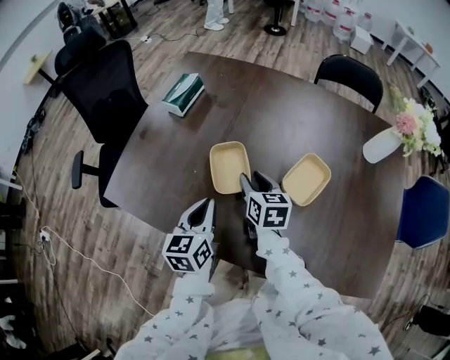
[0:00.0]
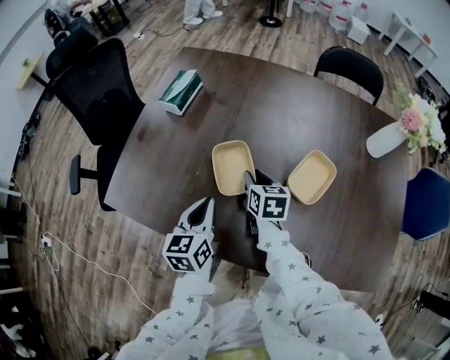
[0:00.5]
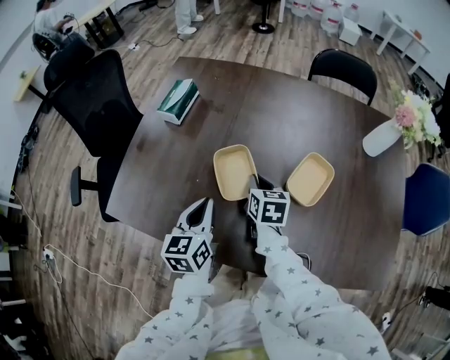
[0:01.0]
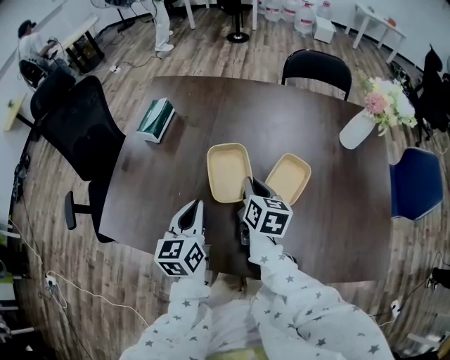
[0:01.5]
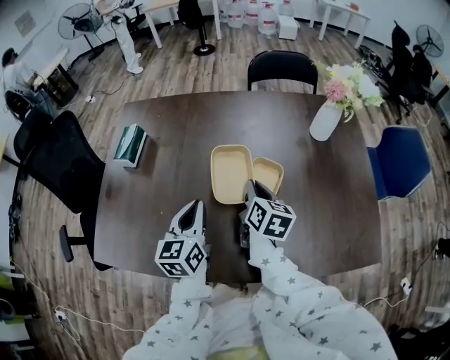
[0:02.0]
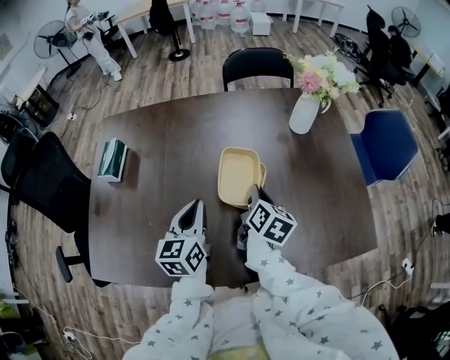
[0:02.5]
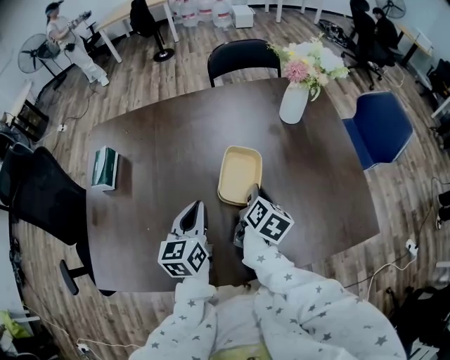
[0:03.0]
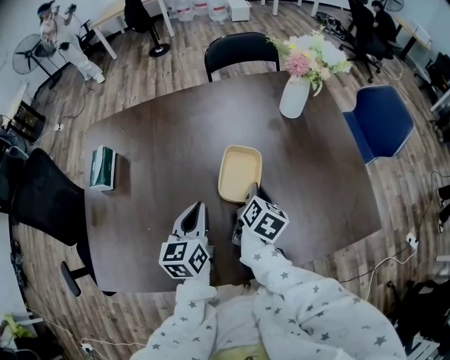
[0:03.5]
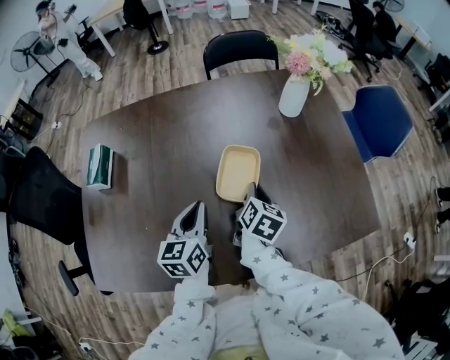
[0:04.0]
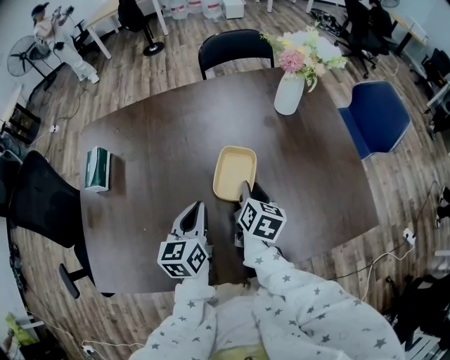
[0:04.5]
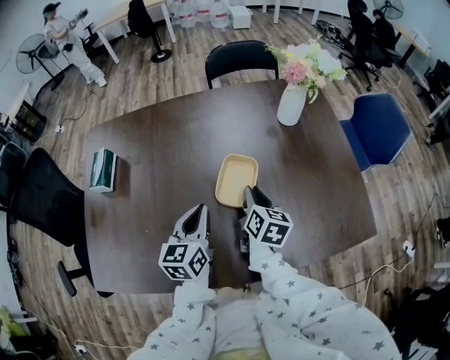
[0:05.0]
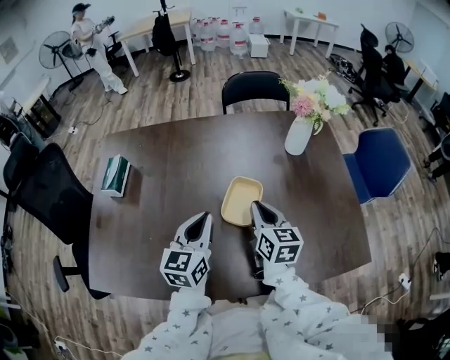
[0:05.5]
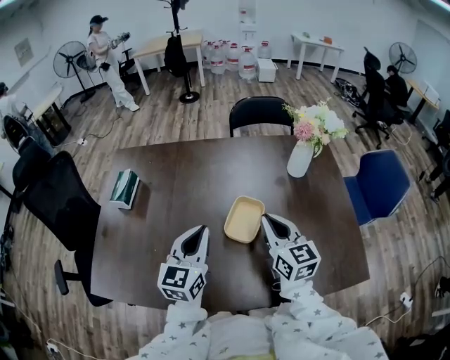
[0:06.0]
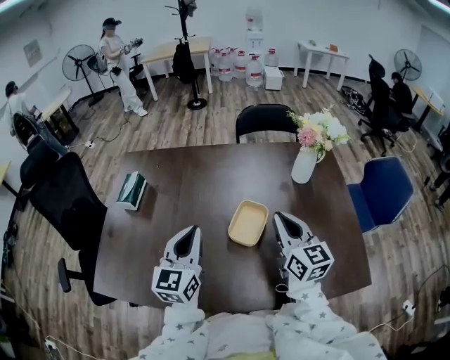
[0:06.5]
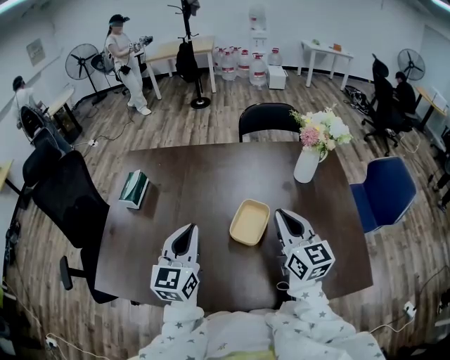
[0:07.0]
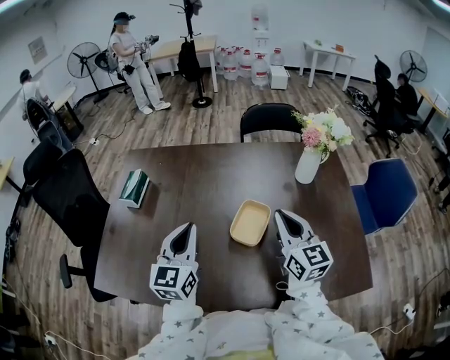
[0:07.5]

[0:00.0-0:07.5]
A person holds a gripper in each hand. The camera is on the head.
0:00.0 to 0:02.0: The left gripper shifts some 10 cm to the right and forward. Meanwhile the right gripper is displaced to the right by approximately 15 cm, changes its angle by about 30 degrees, and closes.
0:02.0 to 0:04.0: The right gripper travels to the right and downward by some 10 cm, and swivels about 30 degrees. Meanwhile the left gripper goes some 5 cm to the right.
0:04.0 to 0:05.5: Both grippers move upward, approximately 10 cm. The right gripper rotates approximately 30 degrees.
0:05.5 to 0:07.5: The left gripper travels upward and to the left by about 10 cm; the right gripper moves upward, some 10 cm, and rotates approximately 20 degrees.

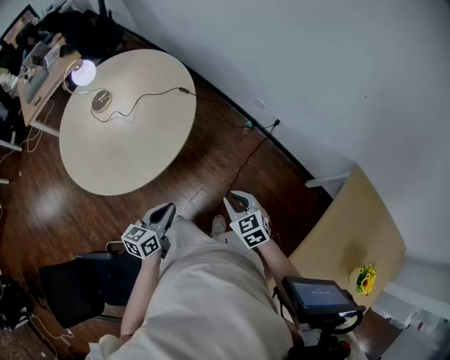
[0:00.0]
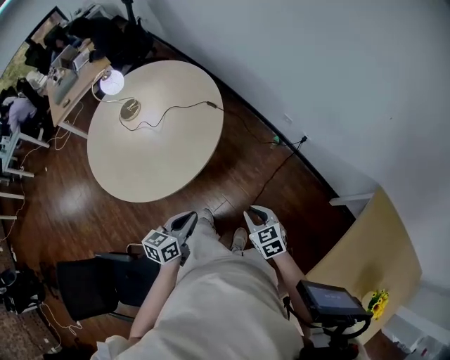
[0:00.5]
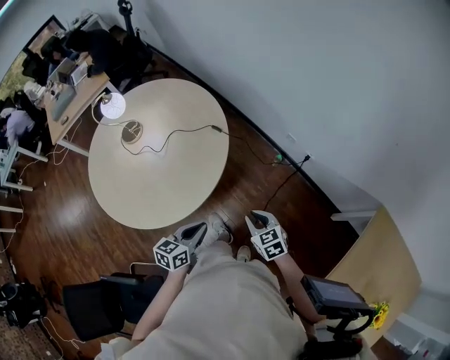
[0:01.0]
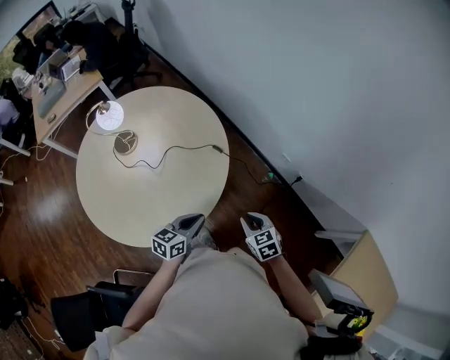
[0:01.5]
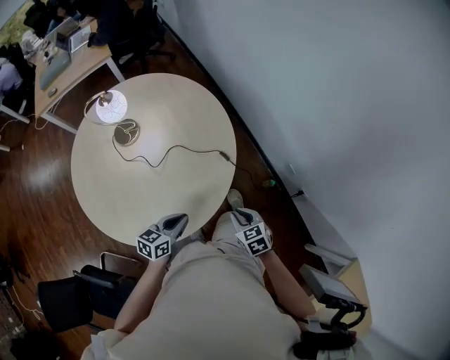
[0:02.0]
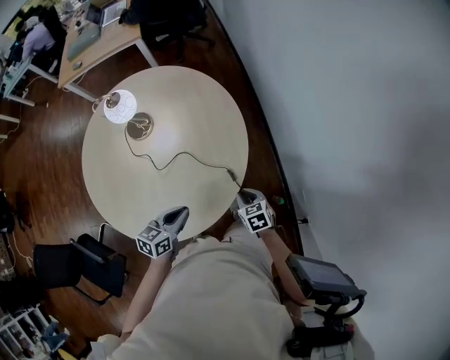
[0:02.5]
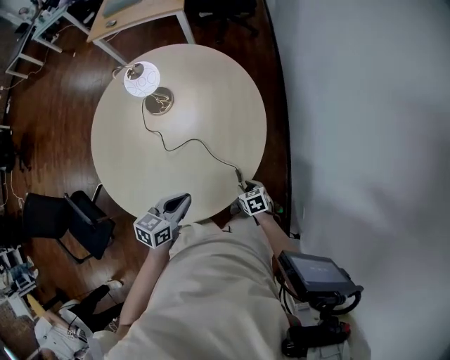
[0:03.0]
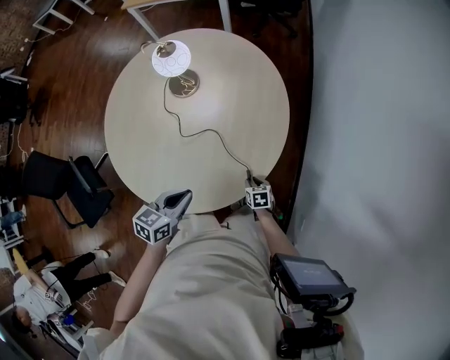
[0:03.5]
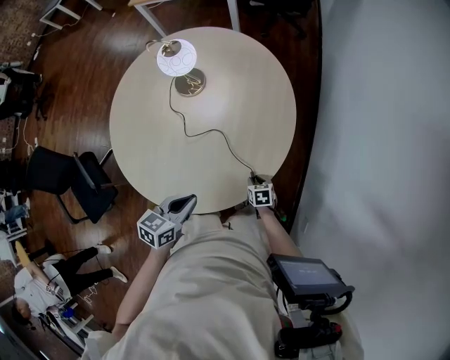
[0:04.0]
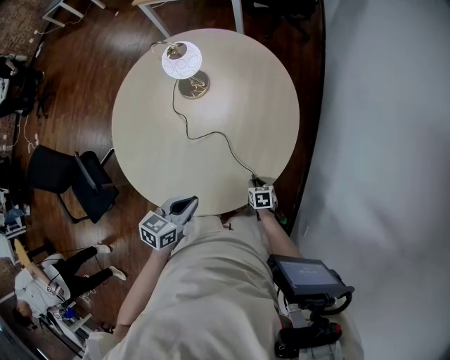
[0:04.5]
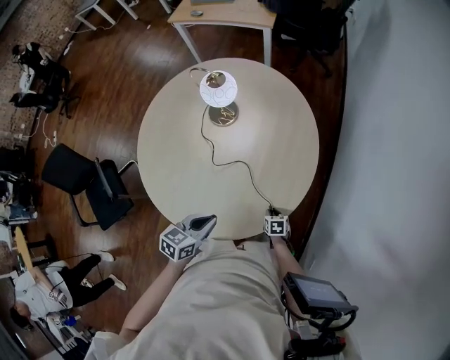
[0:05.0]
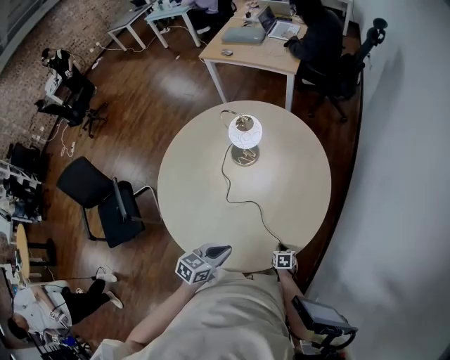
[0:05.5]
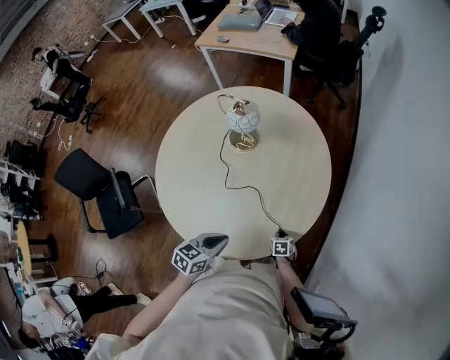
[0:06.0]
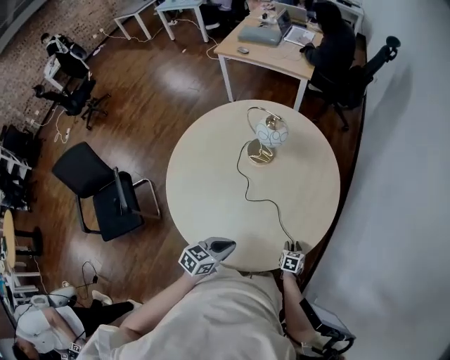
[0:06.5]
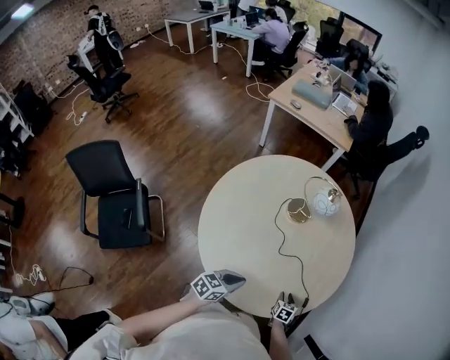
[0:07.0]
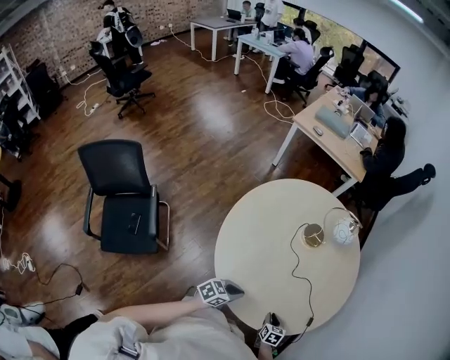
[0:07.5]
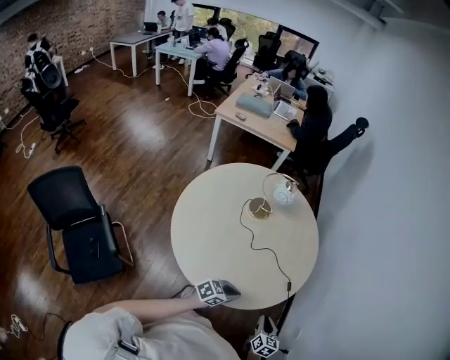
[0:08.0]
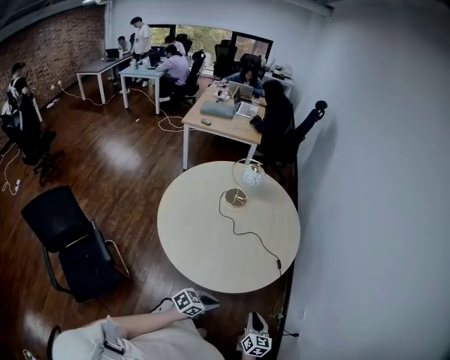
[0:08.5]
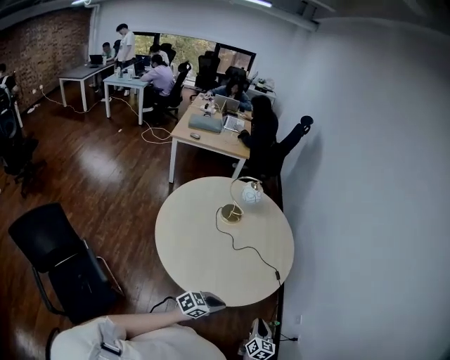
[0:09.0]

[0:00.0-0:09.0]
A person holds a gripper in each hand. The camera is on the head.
0:00.0 to 0:02.0: The grippers both shift forward by approximately 30 cm.
0:02.0 to 0:04.5: The left gripper changes place by approximately 15 cm, and swivels roughly 40 degrees; the right gripper changes place by about 35 cm, and rotates about 30 degrees.
0:04.5 to 0:07.0: The left gripper moves to the left, about 20 cm; the right gripper is displaced to the left and upward by about 15 cm, and turns by about 20 degrees.
0:07.0 to 0:09.0: The right gripper ends up about 40 cm from where it was, angles its fingers upward, by about 30 degrees, and closes, while the left gripper moves approximately 20 cm, and changes its angle by roughly 40 degrees.

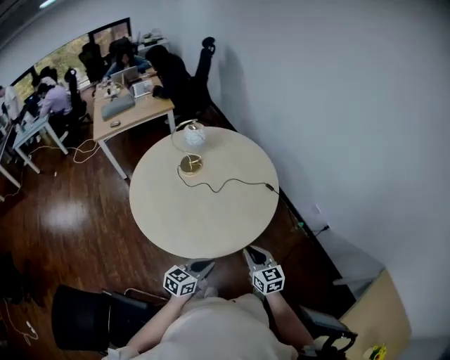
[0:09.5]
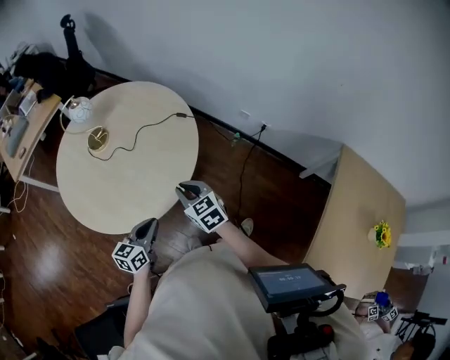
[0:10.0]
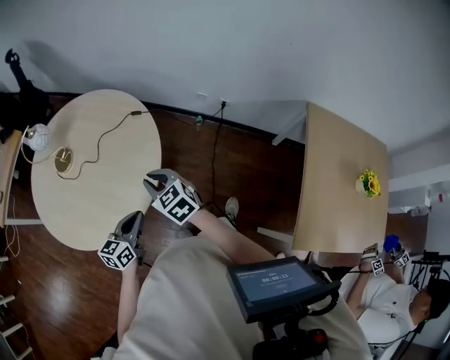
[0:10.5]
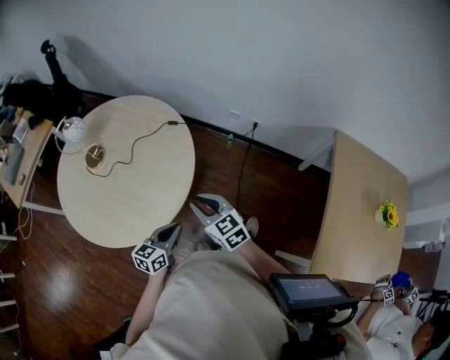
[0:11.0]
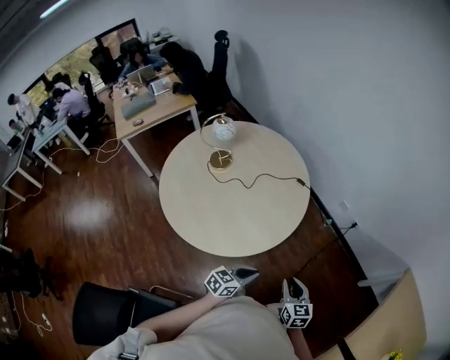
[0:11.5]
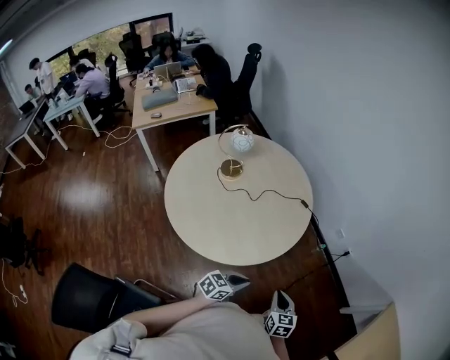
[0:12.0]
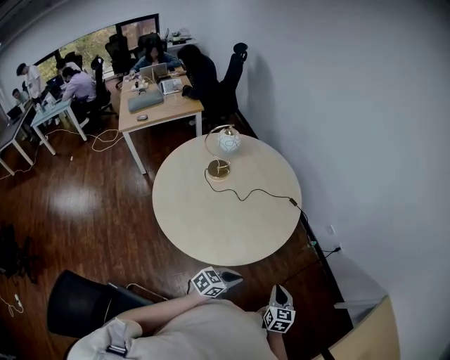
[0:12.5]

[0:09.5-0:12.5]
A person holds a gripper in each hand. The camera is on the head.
0:09.5 to 0:11.0: The two grippers go roughly 5 cm to the right. The left gripper turns by about 20 degrees.
0:11.0 to 0:12.5: The right gripper is displaced downward by roughly 10 cm.

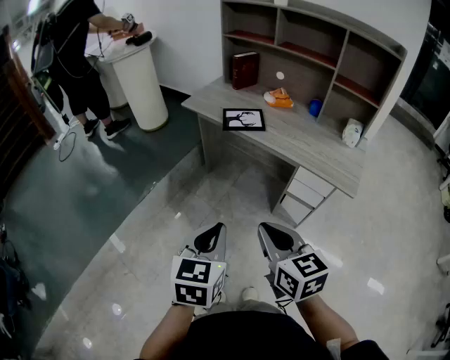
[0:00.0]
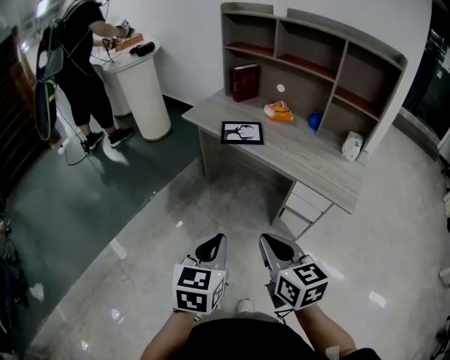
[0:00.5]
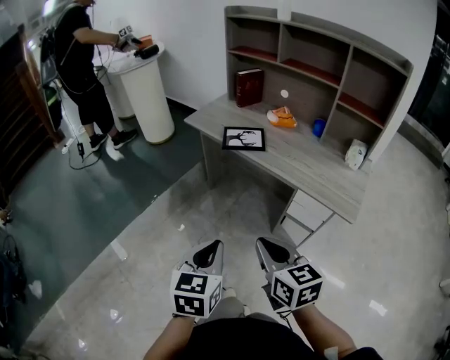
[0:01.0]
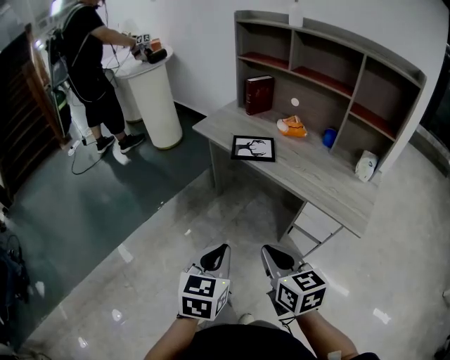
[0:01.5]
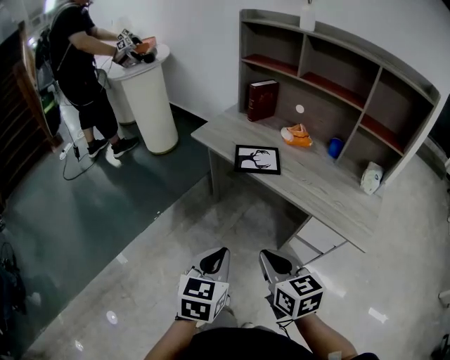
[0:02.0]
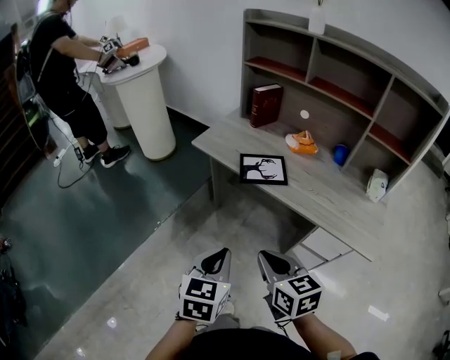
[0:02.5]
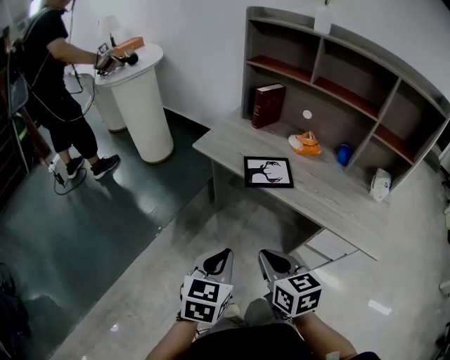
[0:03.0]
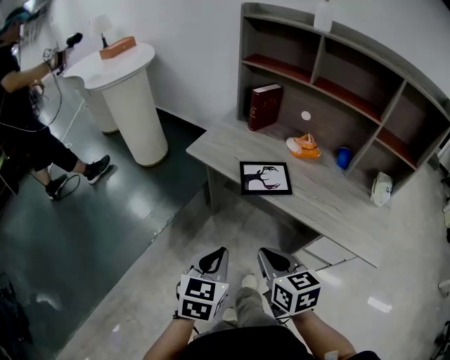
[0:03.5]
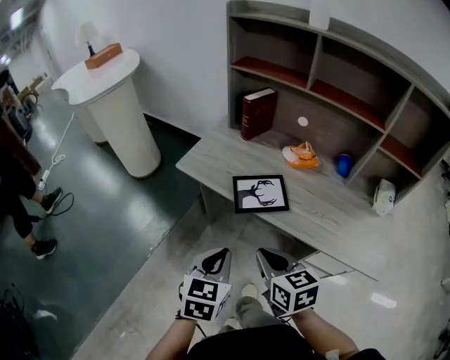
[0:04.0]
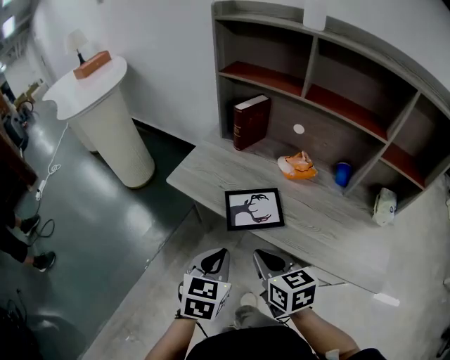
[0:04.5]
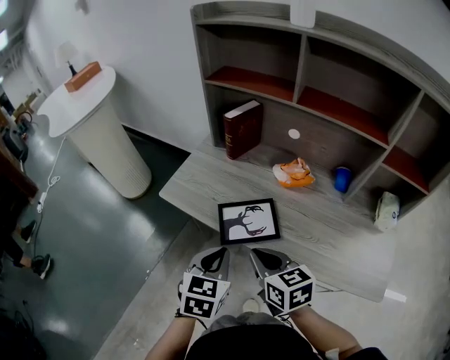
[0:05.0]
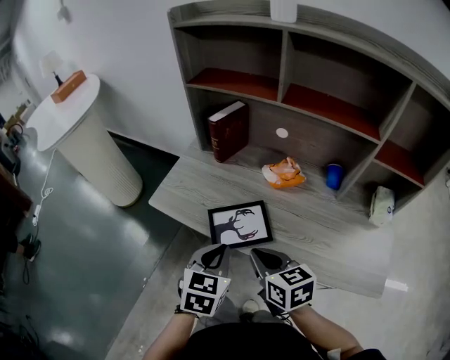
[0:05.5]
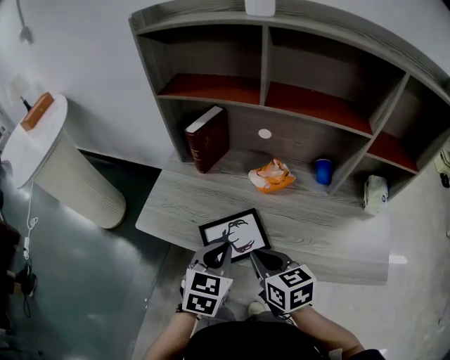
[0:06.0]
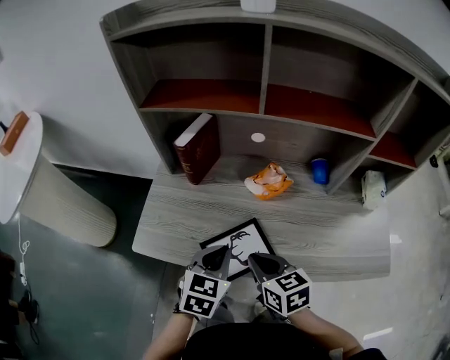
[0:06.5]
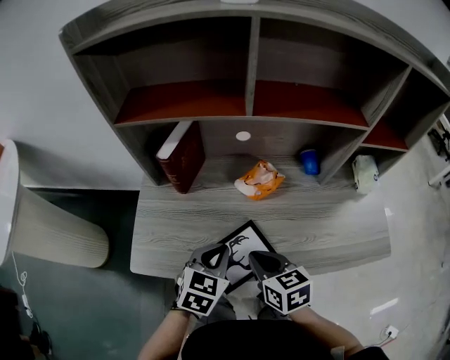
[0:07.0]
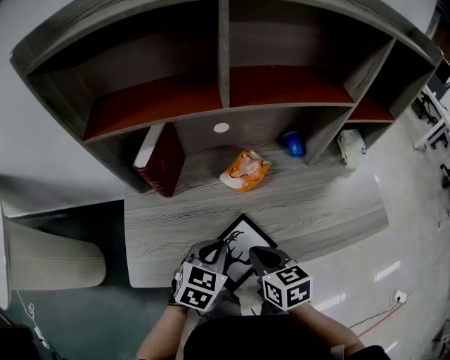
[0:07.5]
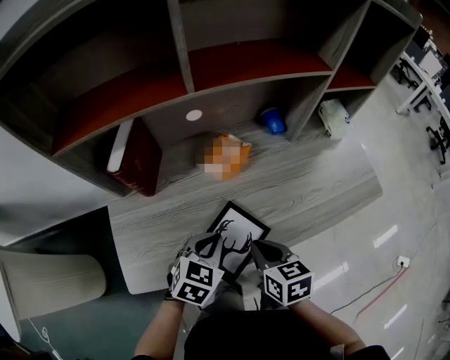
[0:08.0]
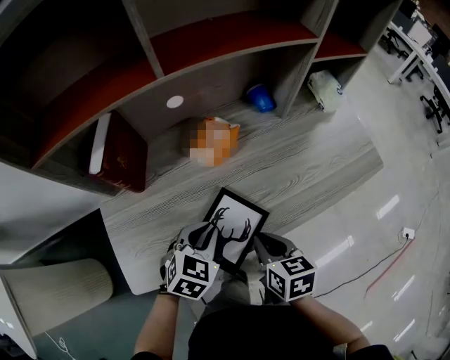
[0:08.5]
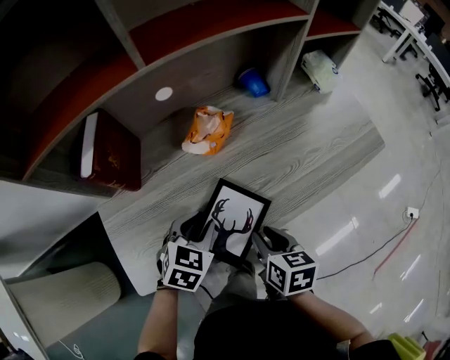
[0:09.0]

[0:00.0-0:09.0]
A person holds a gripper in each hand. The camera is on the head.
0:00.0 to 0:02.0: The grippers both shift forward by about 15 cm.
0:02.0 to 0:04.5: Both grippers move forward, about 30 cm.
0:04.5 to 0:07.0: The left gripper changes place by some 25 cm, and changes its angle by approximately 40 degrees. The right gripper shifts by some 20 cm, and changes its angle by approximately 30 degrees.
0:07.0 to 0:09.0: Both grippers move downward, some 10 cm. The left gripper changes its angle by approximately 30 degrees, and opens up. The right gripper changes its angle by roughly 40 degrees, and opens its fingers.
